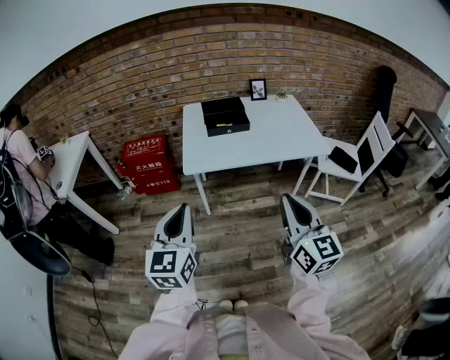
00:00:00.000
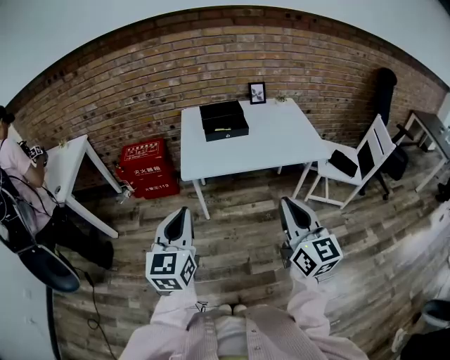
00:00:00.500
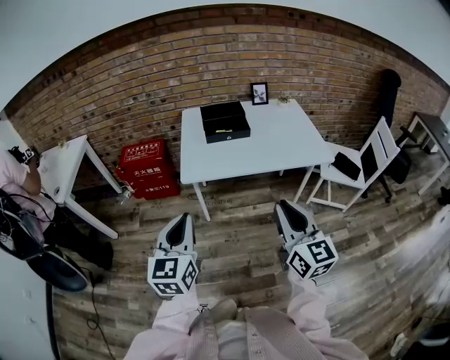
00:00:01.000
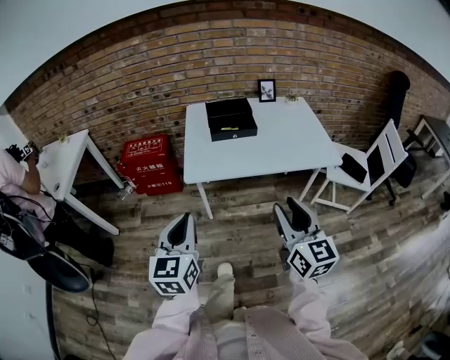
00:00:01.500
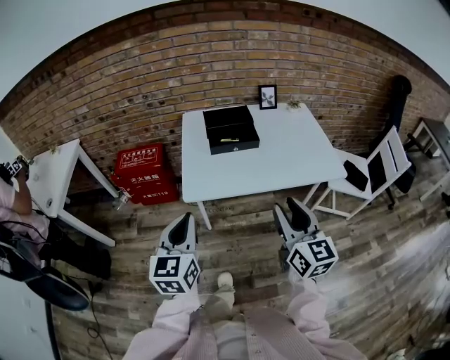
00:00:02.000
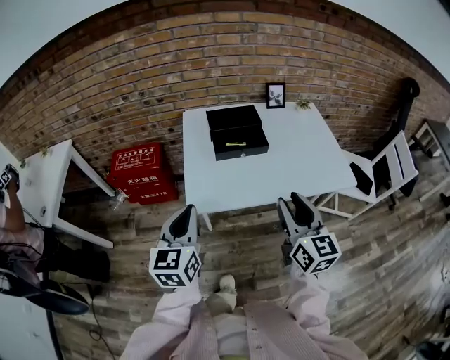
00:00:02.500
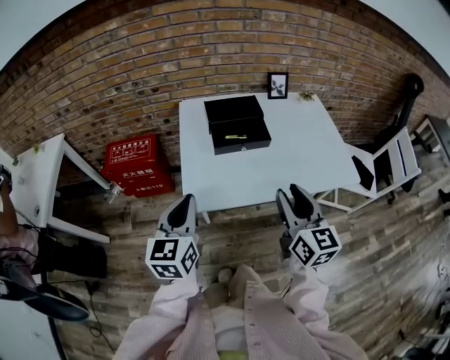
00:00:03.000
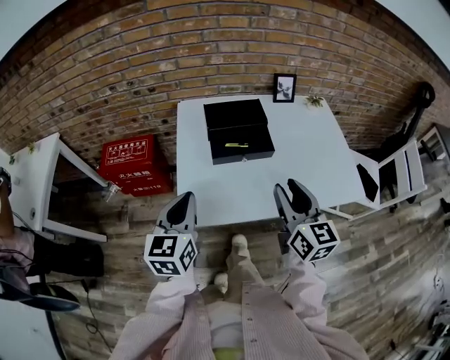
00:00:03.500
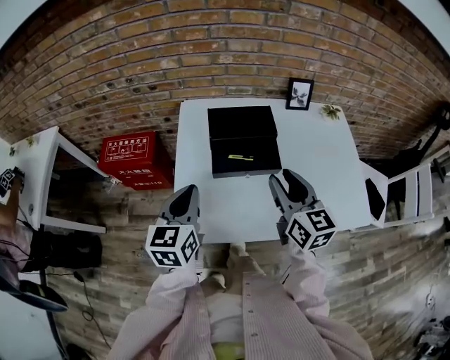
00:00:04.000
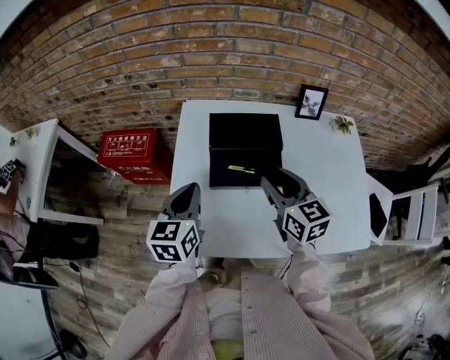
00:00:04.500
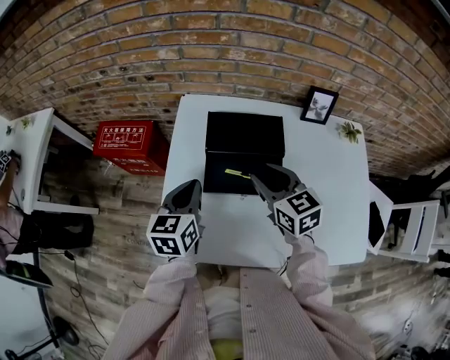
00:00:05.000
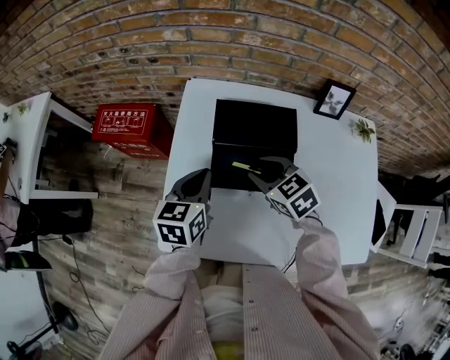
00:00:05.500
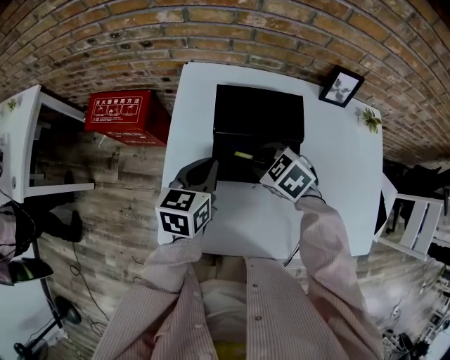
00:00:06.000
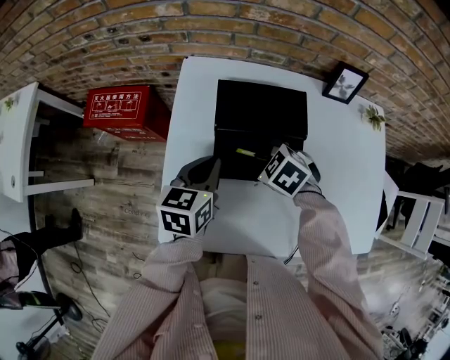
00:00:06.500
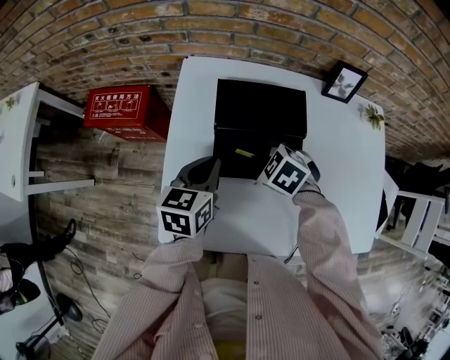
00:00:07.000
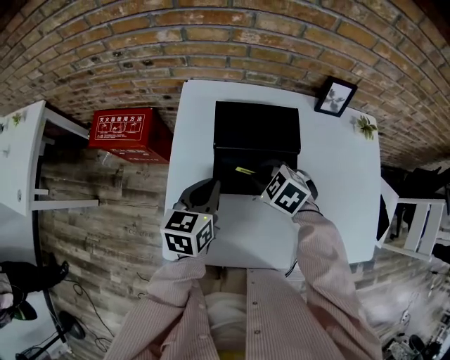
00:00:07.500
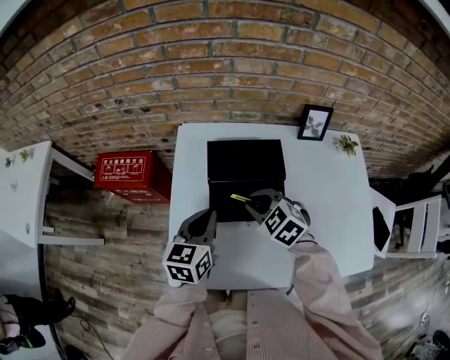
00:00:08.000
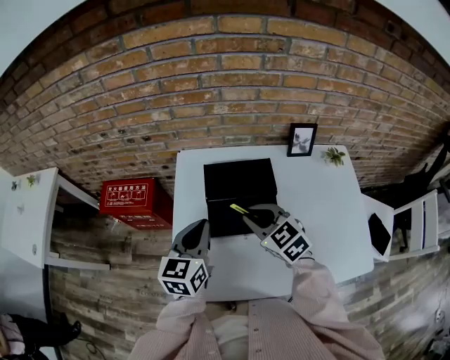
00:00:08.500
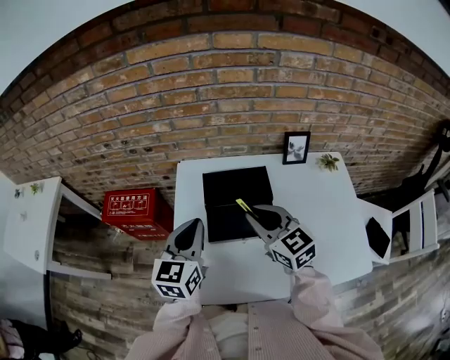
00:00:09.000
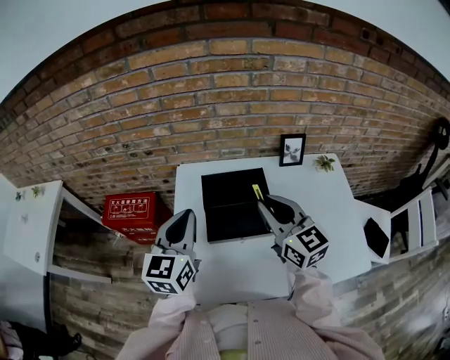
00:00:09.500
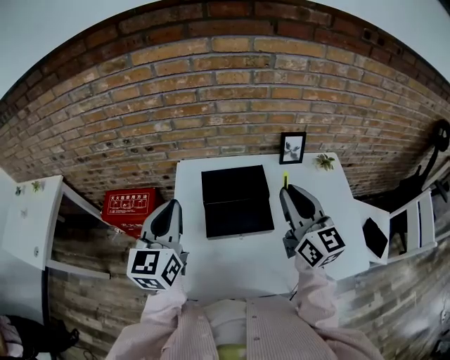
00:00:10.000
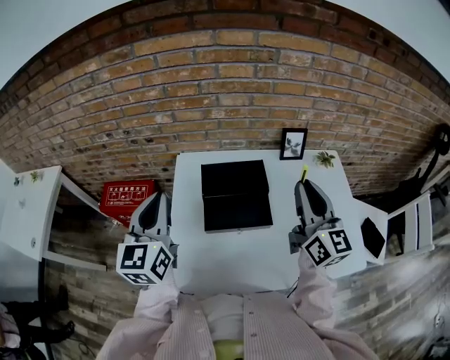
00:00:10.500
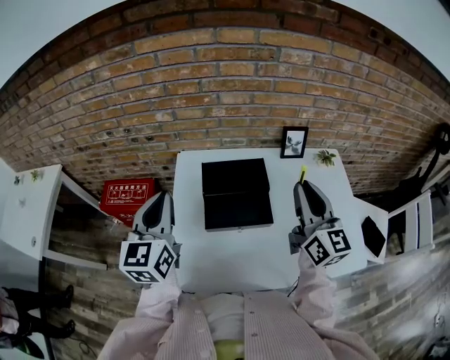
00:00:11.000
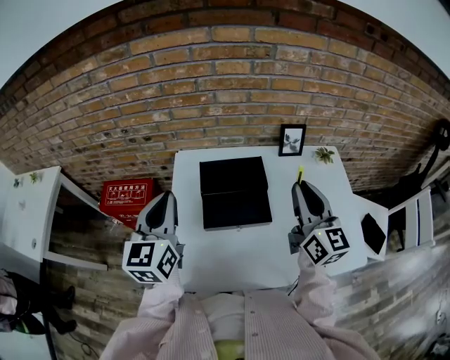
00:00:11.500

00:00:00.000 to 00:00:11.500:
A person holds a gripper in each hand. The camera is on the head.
00:00:00.000 to 00:00:02.000: The grippers both shift forward by approximately 15 cm. The right gripper opens its fingers.
00:00:02.000 to 00:00:04.000: Both grippers travel together forward, some 35 cm.
00:00:04.000 to 00:00:06.000: The right gripper heads downward and forward, covering approximately 25 cm, and tips its fingers downward by approximately 50 degrees. The left gripper travels forward, downward and to the right by roughly 20 cm.
00:00:06.000 to 00:00:07.500: The right gripper closes.
00:00:07.500 to 00:00:09.500: Both grippers move upward, approximately 20 cm. The left gripper swivels about 30 degrees. The right gripper angles its fingers upward, by approximately 60 degrees.
00:00:09.500 to 00:00:11.500: The right gripper is displaced to the right by about 10 cm, and changes its angle by some 20 degrees.

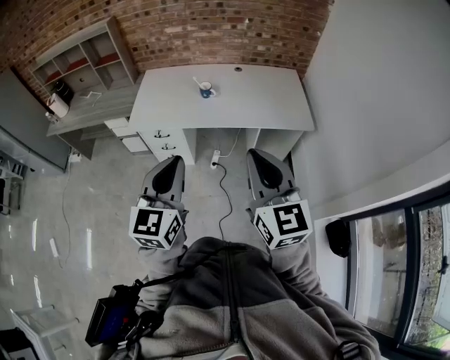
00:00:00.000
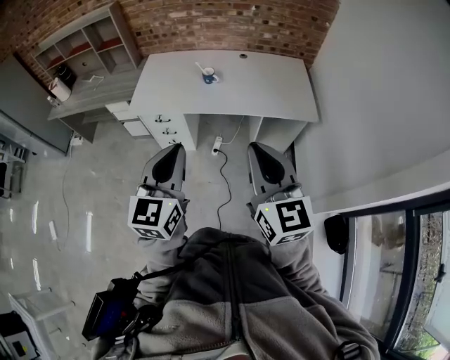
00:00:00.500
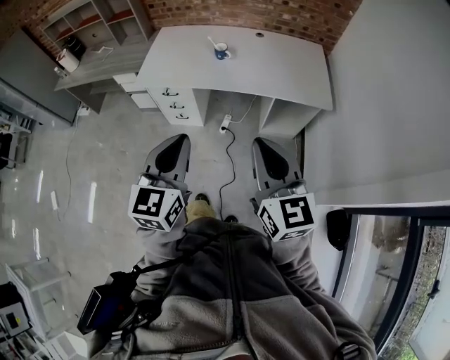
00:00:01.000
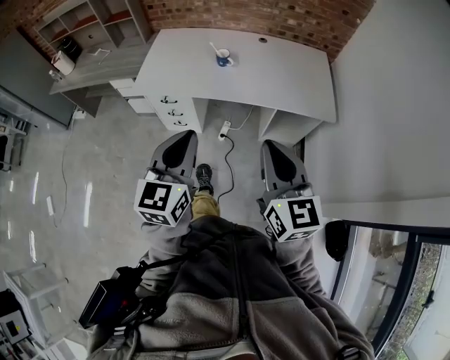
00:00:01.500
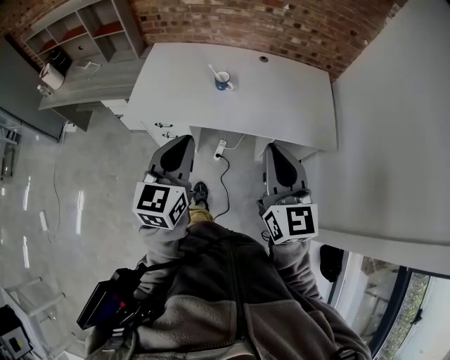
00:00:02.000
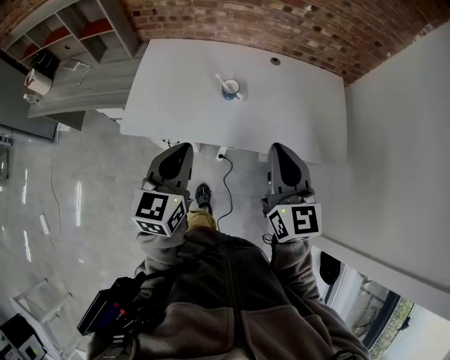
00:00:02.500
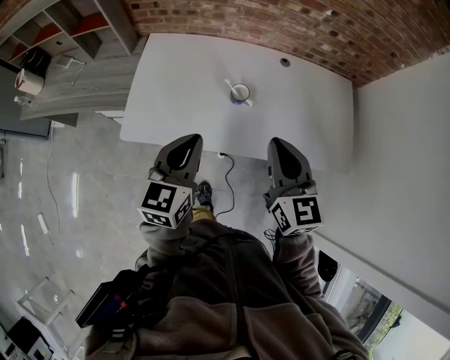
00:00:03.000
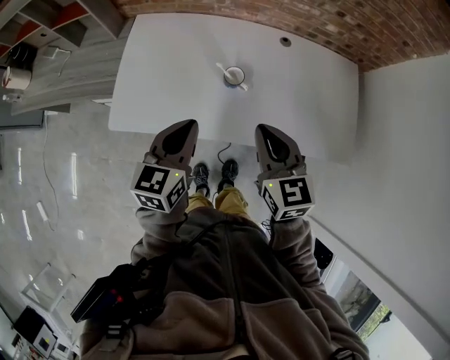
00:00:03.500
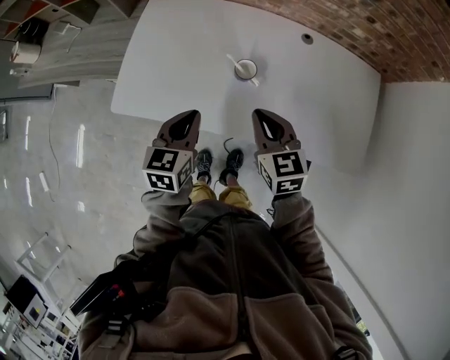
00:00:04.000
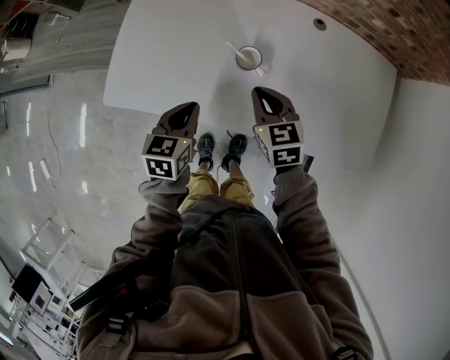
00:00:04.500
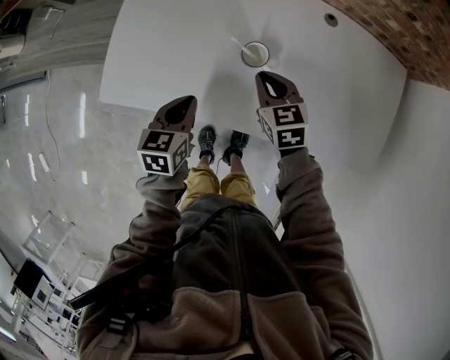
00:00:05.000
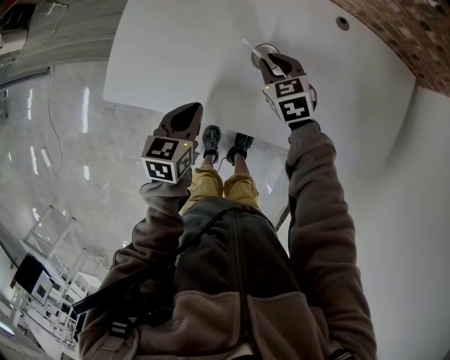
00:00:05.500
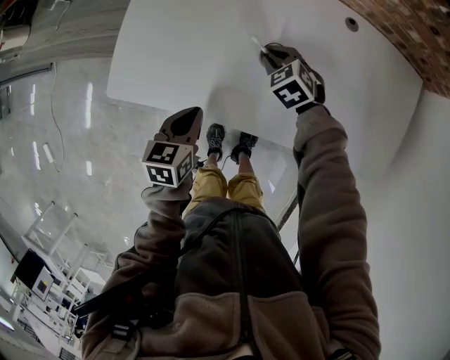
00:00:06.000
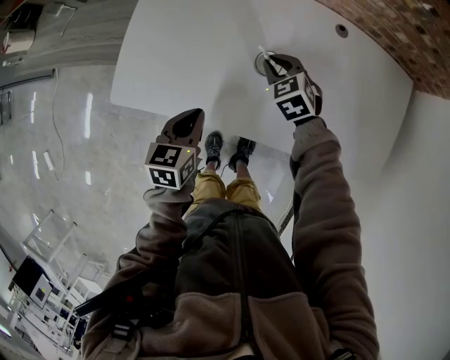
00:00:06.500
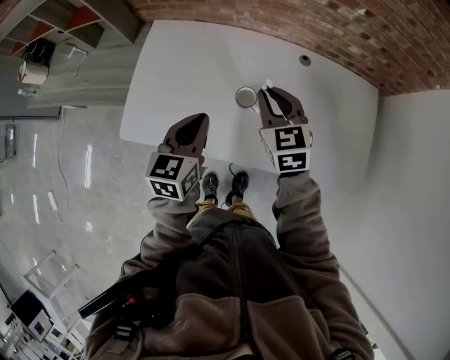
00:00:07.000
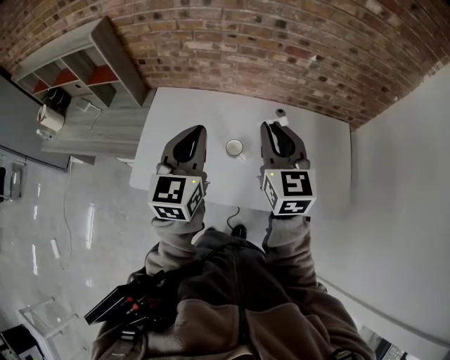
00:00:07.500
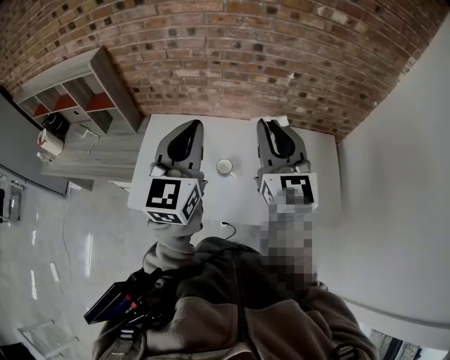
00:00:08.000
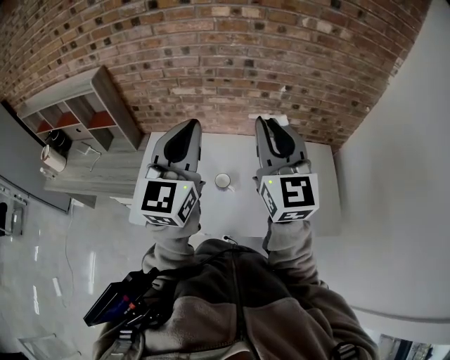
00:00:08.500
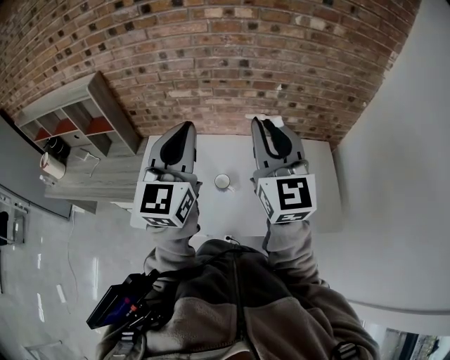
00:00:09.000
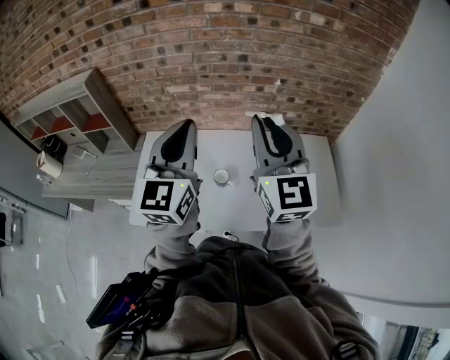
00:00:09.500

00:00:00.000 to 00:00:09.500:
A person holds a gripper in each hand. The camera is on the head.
00:00:00.000 to 00:00:02.000: The two grippers go roughly 20 cm forward.
00:00:02.000 to 00:00:04.000: The two grippers go roughly 35 cm forward and downward. The right gripper tips its fingers downward by roughly 30 degrees. Meanwhile the left gripper turns by roughly 30 degrees.
00:00:04.000 to 00:00:05.500: The right gripper heads downward and forward, covering about 25 cm, and changes its angle by roughly 20 degrees. Meanwhile the left gripper is displaced downward by approximately 10 cm.
00:00:05.500 to 00:00:07.500: Both grippers move upward, some 40 cm. The right gripper tips its fingers upward by about 40 degrees. Meanwhile the left gripper tips its fingers upward by some 40 degrees.
00:00:07.500 to 00:00:09.500: The two grippers go some 15 cm upward. The left gripper turns by roughly 20 degrees; the right gripper changes its angle by some 20 degrees.

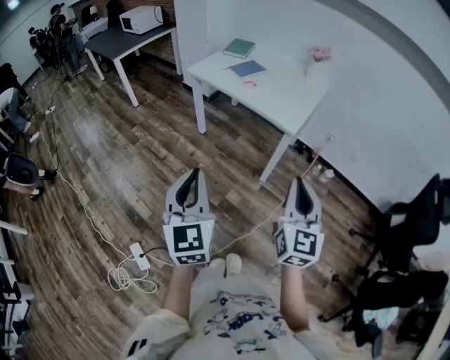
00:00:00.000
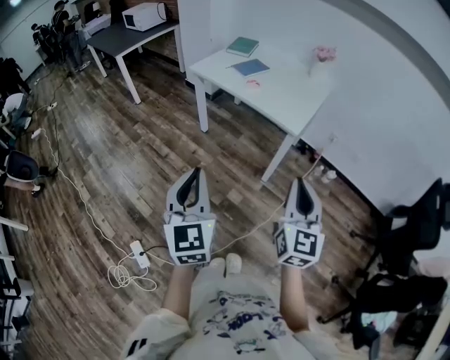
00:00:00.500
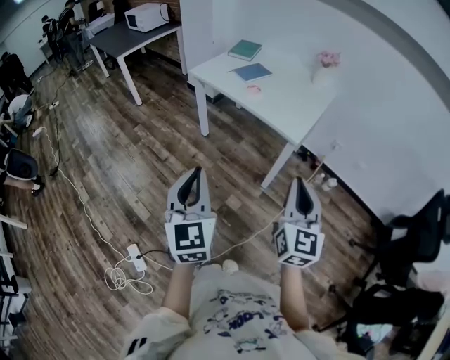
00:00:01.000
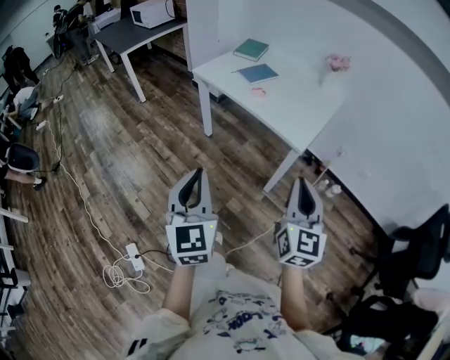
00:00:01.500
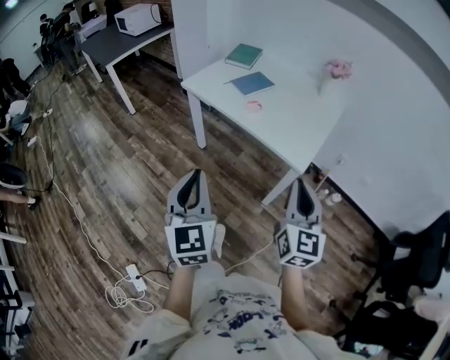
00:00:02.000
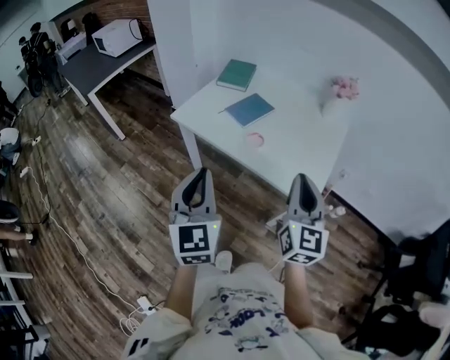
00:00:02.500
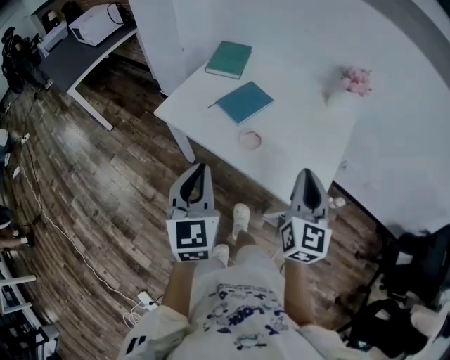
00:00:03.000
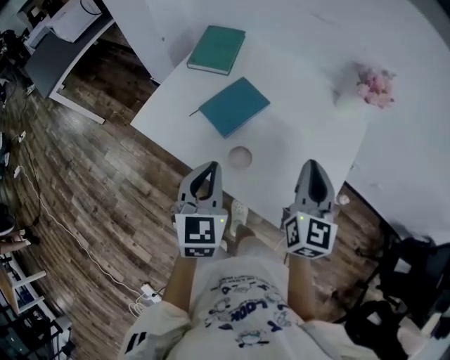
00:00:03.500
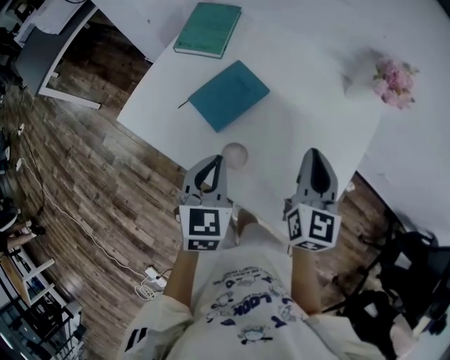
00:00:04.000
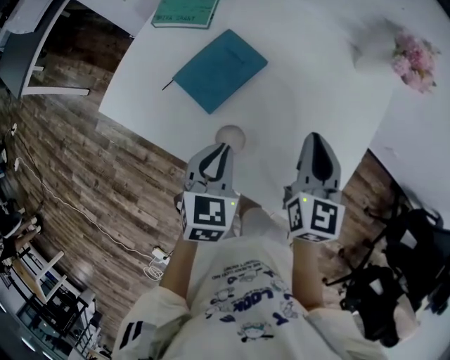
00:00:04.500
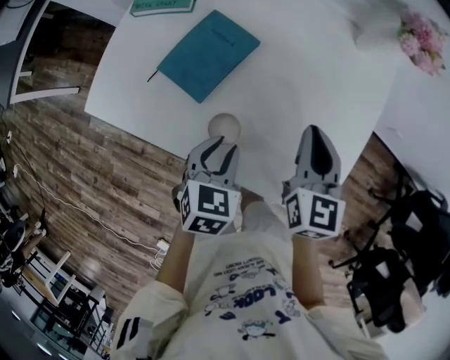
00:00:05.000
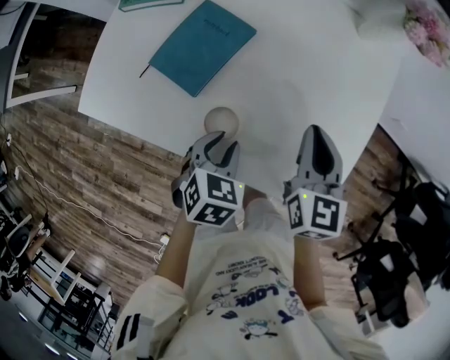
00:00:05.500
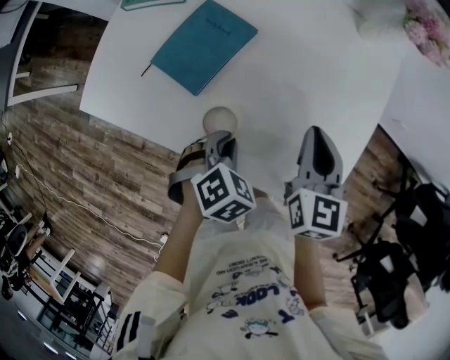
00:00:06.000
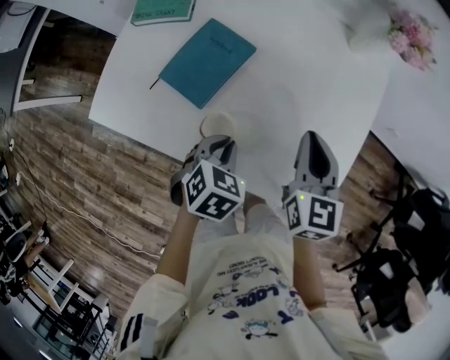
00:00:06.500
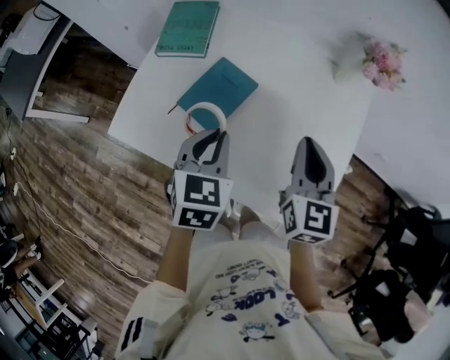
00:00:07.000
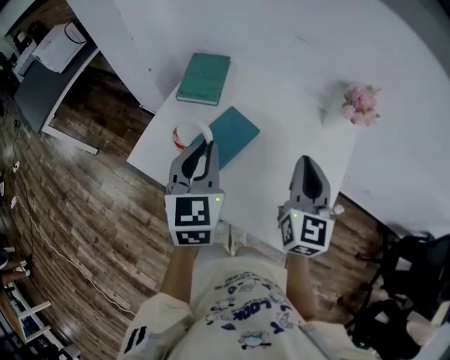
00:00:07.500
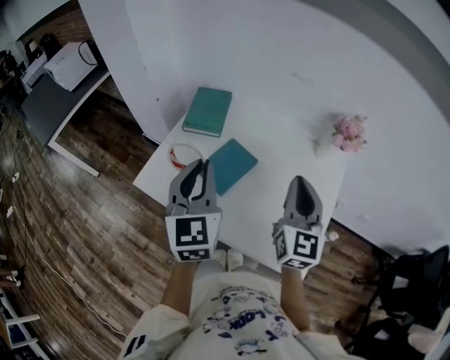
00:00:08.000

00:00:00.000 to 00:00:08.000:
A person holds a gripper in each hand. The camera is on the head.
00:00:00.000 to 00:00:02.000: Both grippers travel together forward, roughly 20 cm.
00:00:02.000 to 00:00:04.000: The pair of grippers is taken forward, some 50 cm. The left gripper changes its angle by some 30 degrees.
00:00:04.000 to 00:00:06.000: The left gripper is displaced downward and to the right by roughly 15 cm, and angles its fingers downward, by approximately 40 degrees, while the right gripper goes approximately 10 cm downward.
00:00:06.000 to 00:00:08.000: The left gripper is displaced upward and to the left by roughly 35 cm, and tilts its fingers about 60 degrees upward. Meanwhile the right gripper travels upward by some 20 cm, and swivels roughly 30 degrees.
